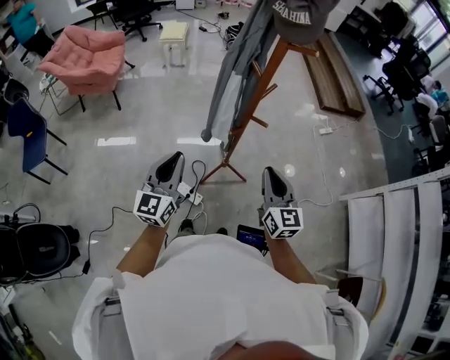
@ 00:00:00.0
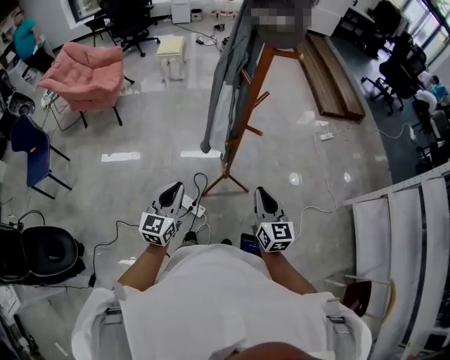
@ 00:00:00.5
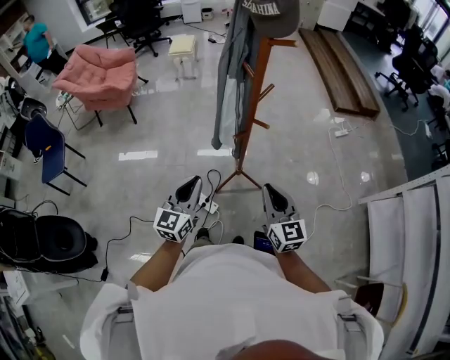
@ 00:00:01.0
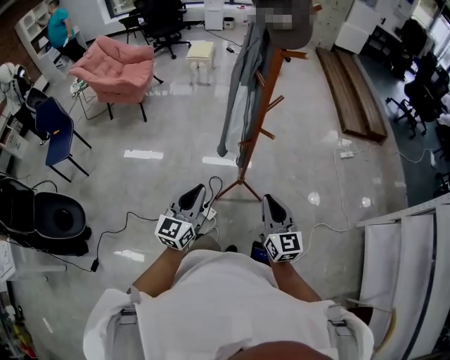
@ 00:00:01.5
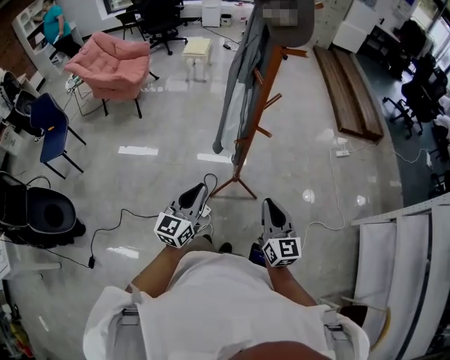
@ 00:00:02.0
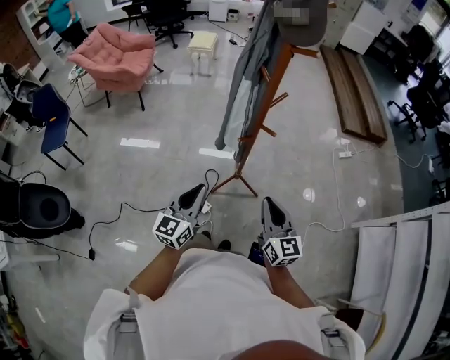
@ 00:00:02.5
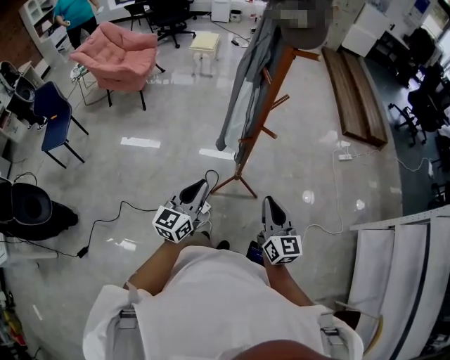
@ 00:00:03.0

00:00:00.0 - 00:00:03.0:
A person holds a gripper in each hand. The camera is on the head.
00:00:00.0 - 00:00:01.5: The right gripper moves roughly 5 cm. Meanwhile the left gripper travels to the right and backward by some 10 cm.
00:00:01.5 - 00:00:03.0: The grippers make only small movements.

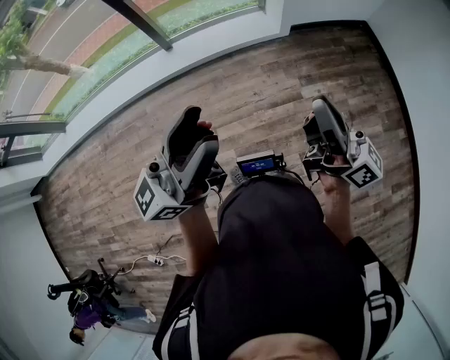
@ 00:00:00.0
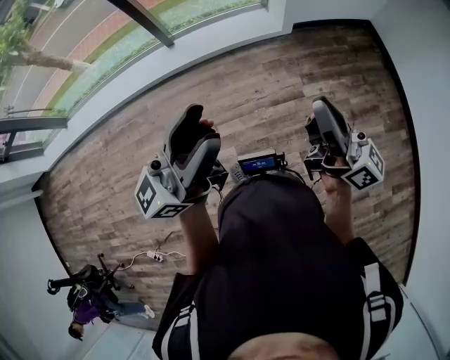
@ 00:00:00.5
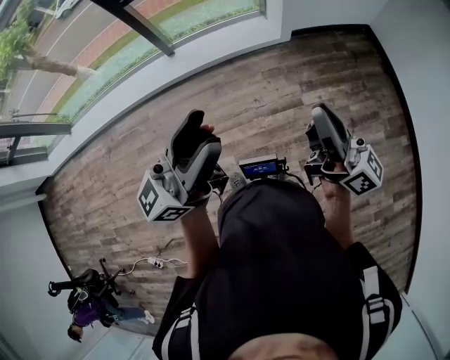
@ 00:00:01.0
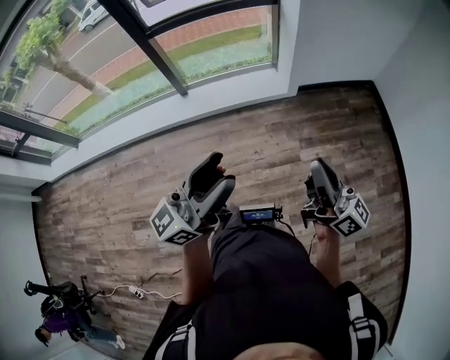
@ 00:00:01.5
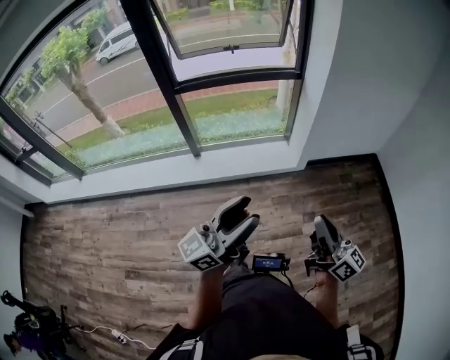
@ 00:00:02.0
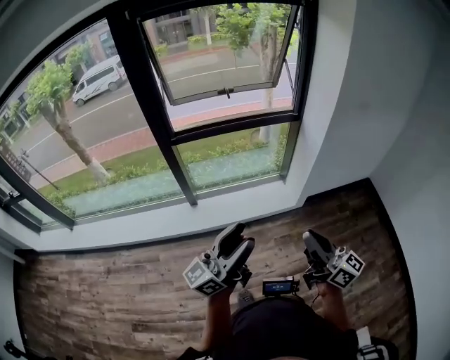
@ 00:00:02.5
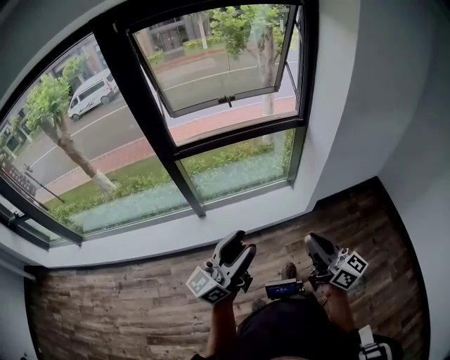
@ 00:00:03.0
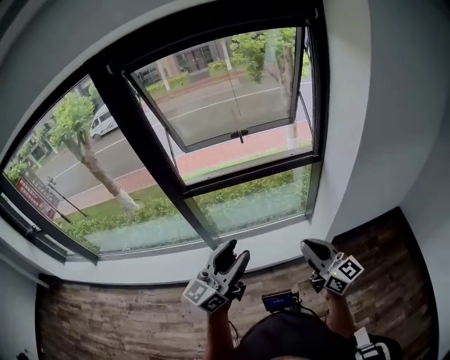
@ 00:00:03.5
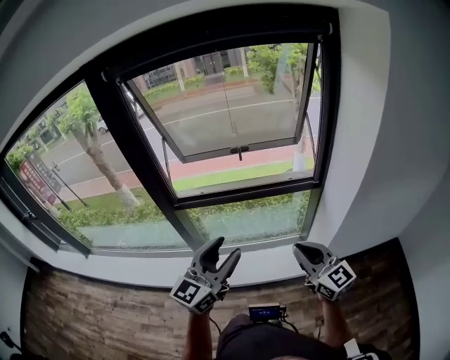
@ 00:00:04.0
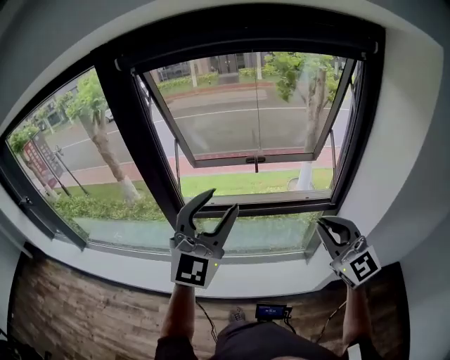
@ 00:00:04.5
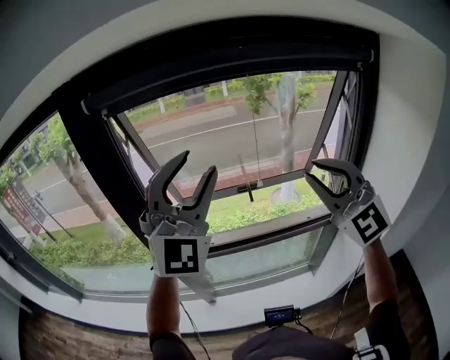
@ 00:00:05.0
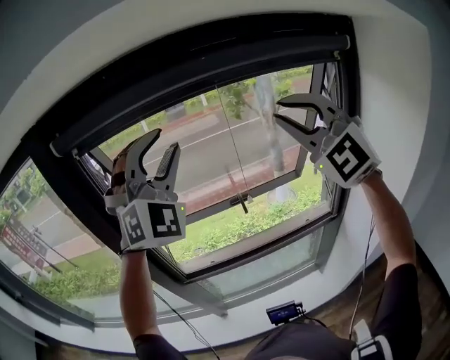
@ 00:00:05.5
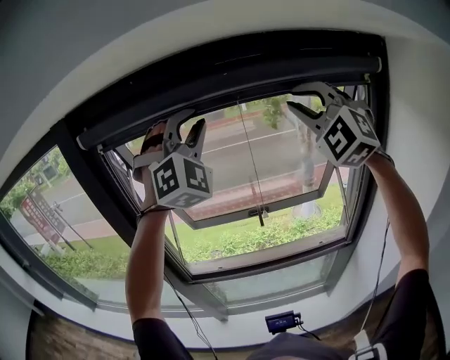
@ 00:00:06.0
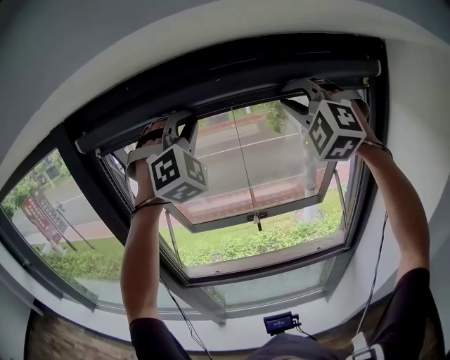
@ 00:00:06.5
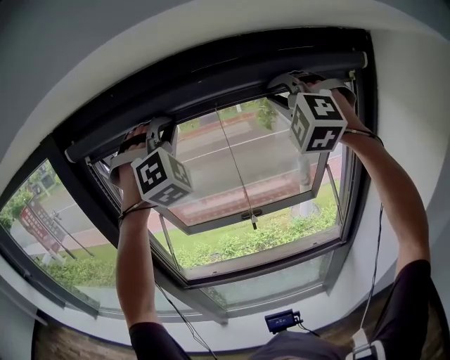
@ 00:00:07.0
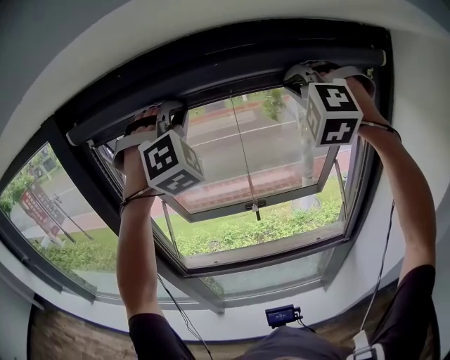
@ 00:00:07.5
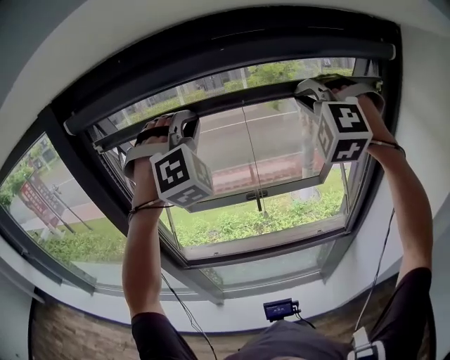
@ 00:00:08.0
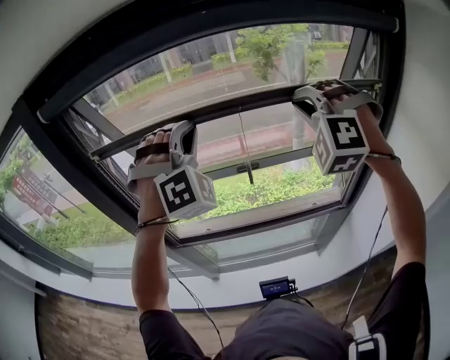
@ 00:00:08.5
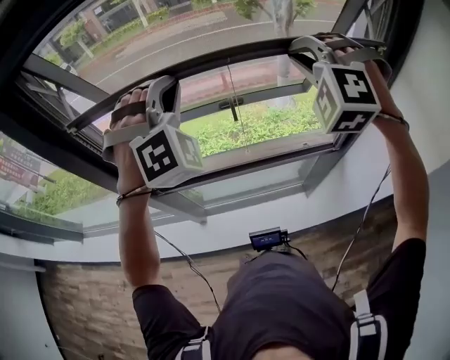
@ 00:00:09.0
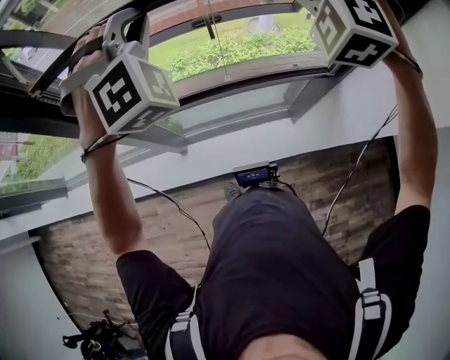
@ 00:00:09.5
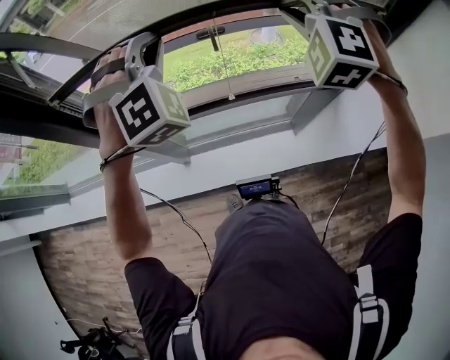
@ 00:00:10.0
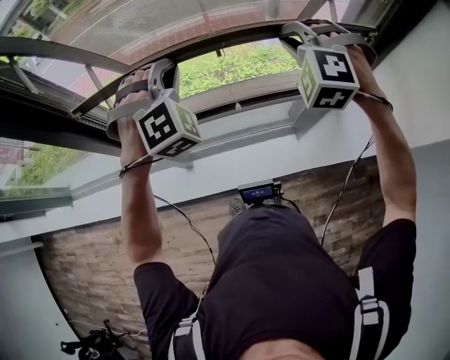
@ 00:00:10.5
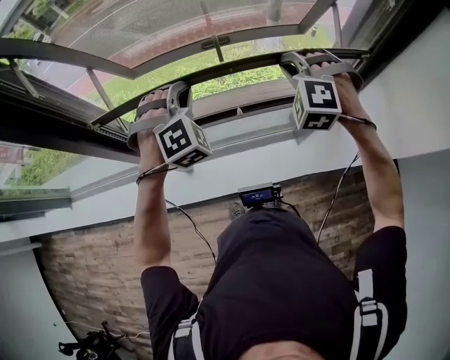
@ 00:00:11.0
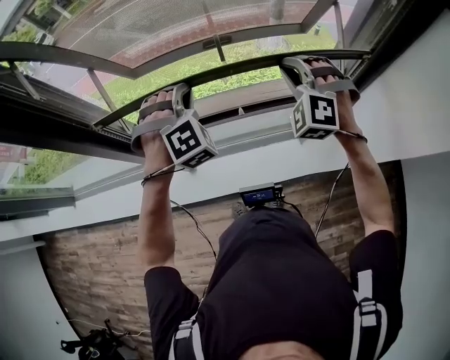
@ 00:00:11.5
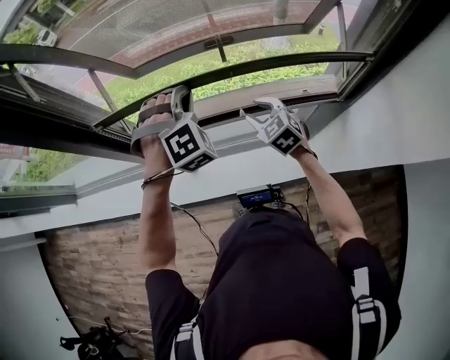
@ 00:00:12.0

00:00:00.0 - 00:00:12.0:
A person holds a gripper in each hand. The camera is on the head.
00:00:00.0 - 00:00:02.0: Both grippers travel together forward, some 15 cm.
00:00:02.0 - 00:00:04.0: The pair of grippers is taken forward, about 40 cm. The right gripper changes its angle by about 40 degrees. The left gripper swivels some 40 degrees.
00:00:04.0 - 00:00:06.0: The two grippers travel together, forward, about 40 cm. The two grippers go approximately 40 cm upward. The right gripper rotates around the line of its fingers by roughly 80 degrees, counterclockwise from behind; the left gripper rolls clockwise, seen from behind, by approximately 90 degrees, and closes.
00:00:06.0 - 00:00:08.0: The grippers both shift downward by approximately 5 cm. The right gripper rotates roughly 30 degrees. The left gripper closes.
00:00:08.0 - 00:00:10.0: Both grippers move downward, approximately 25 cm. The left gripper changes its angle by approximately 20 degrees; the right gripper turns by some 20 degrees.
00:00:10.0 - 00:00:12.0: The right gripper shifts some 30 cm downward, rotates around the line of its fingers by approximately 50 degrees, clockwise from behind, and opens up. The left gripper shifts approximately 15 cm downward.

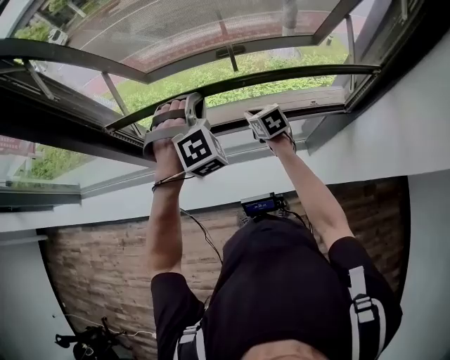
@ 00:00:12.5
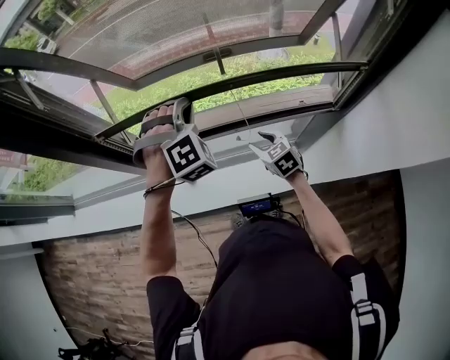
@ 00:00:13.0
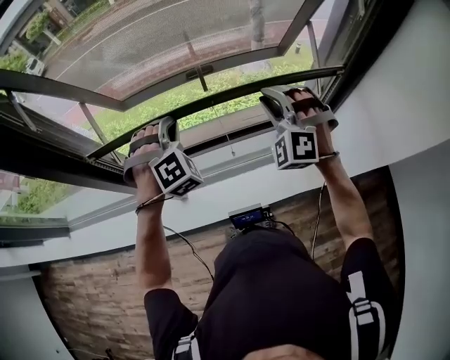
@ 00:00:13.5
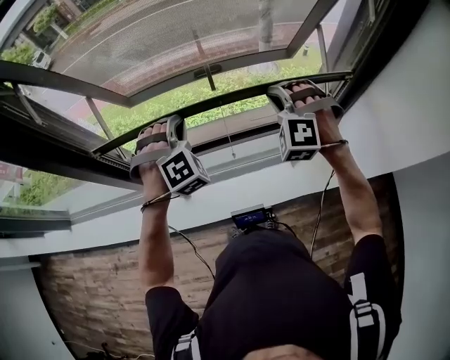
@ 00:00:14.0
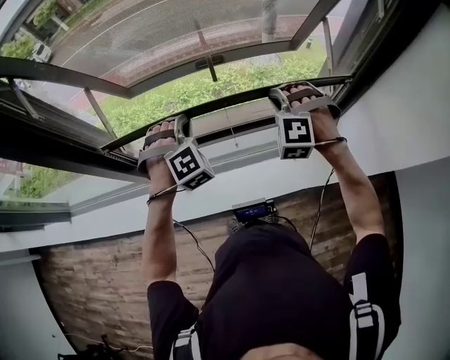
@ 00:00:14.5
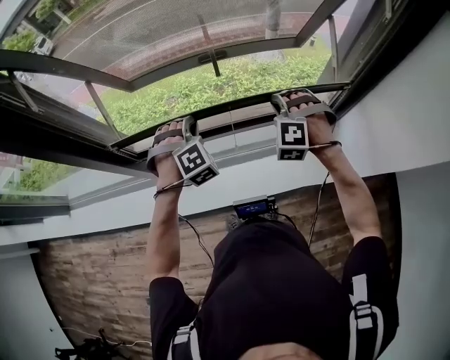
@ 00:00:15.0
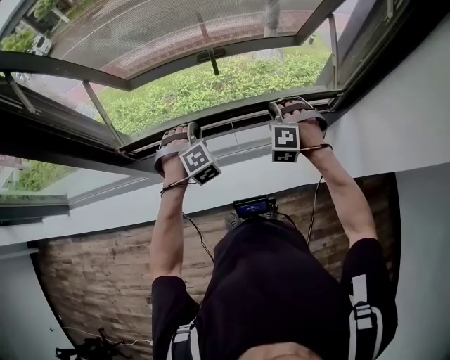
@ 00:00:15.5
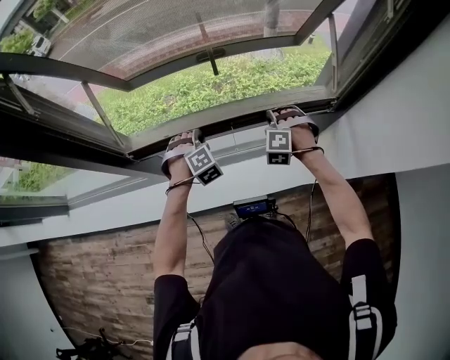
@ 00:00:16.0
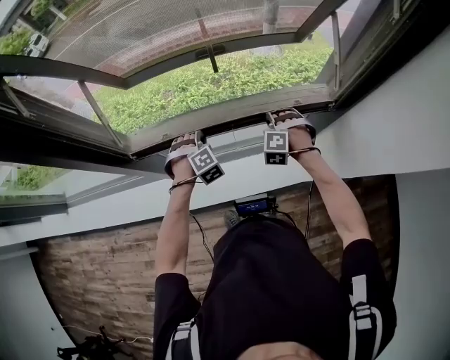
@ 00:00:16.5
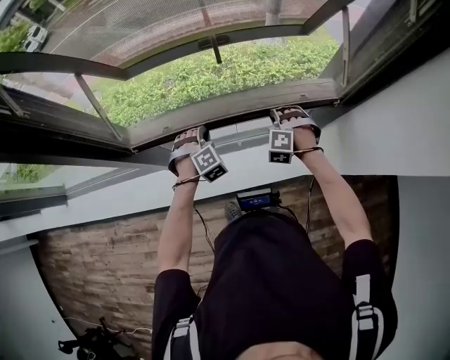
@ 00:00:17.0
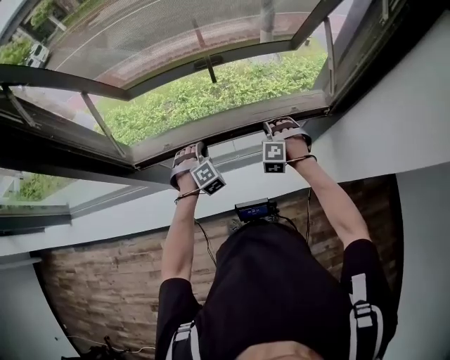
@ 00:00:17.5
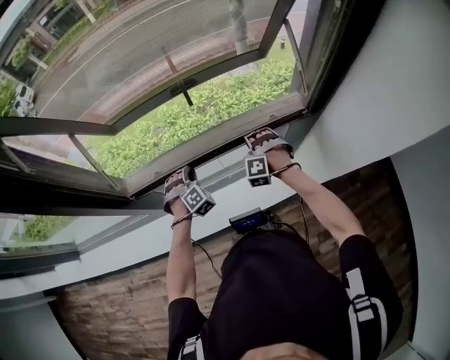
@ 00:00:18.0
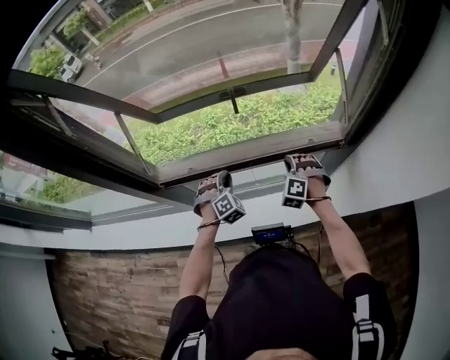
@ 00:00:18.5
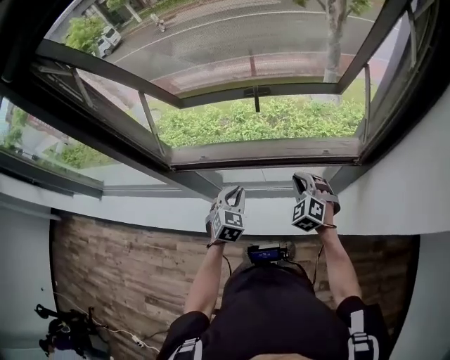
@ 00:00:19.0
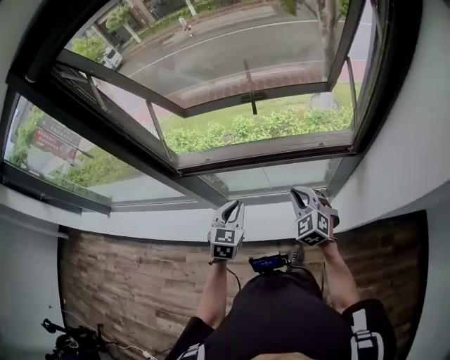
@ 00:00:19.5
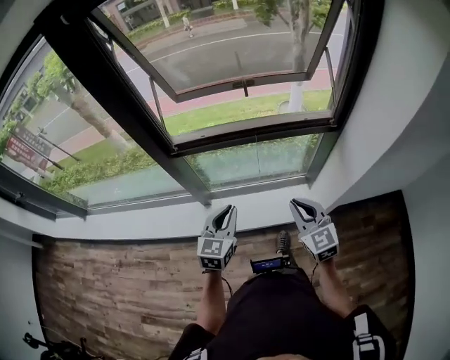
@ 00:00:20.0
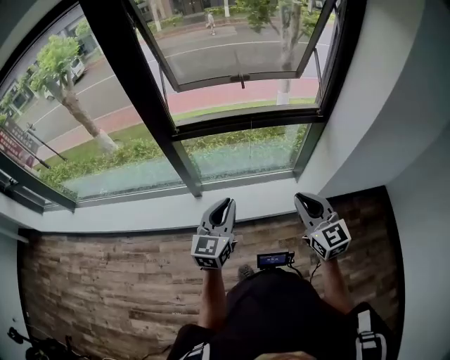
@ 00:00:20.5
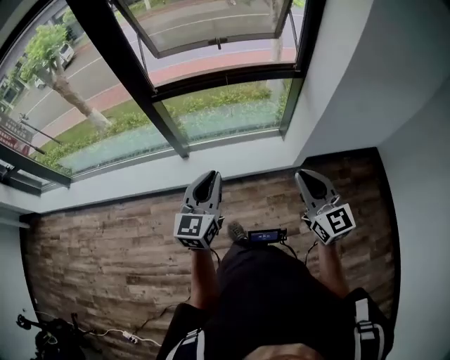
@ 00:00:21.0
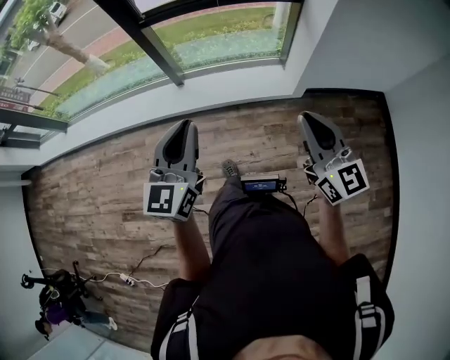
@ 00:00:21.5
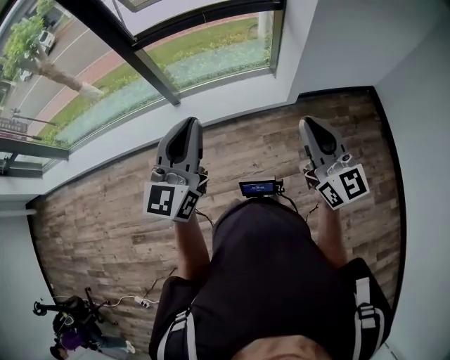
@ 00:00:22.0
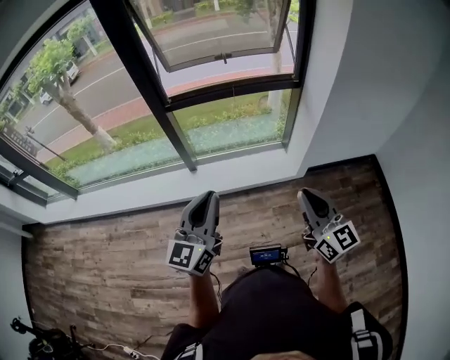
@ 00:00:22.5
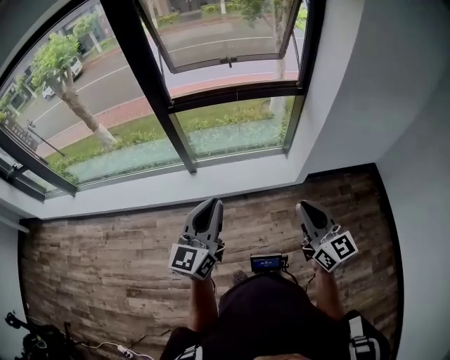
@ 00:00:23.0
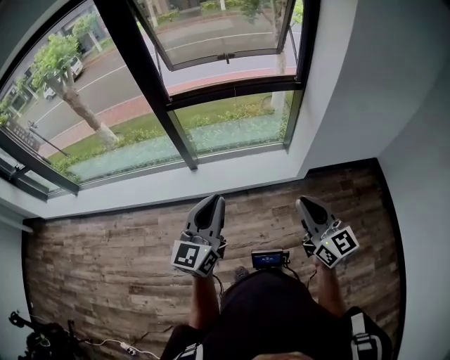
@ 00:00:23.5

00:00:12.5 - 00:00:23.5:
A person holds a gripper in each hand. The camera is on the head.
00:00:12.5 - 00:00:14.5: The right gripper moves upward and to the right, some 20 cm, rolls counterclockwise, seen from behind, by approximately 80 degrees, and opens, then closes again.
00:00:14.5 - 00:00:16.0: The grippers both shift downward by about 15 cm.
00:00:16.0 - 00:00:18.0: The left gripper heads downward, covering some 5 cm.
00:00:18.0 - 00:00:20.0: Both grippers travel together backward and upward, roughly 35 cm. The right gripper rotates around the line of its fingers by roughly 60 degrees, clockwise from behind, while the left gripper rolls counterclockwise, seen from behind, by some 60 degrees.
00:00:20.0 - 00:00:21.5: Both grippers move backward, roughly 35 cm. The right gripper turns by approximately 20 degrees.
00:00:21.5 - 00:00:23.5: The right gripper goes some 5 cm to the left.
